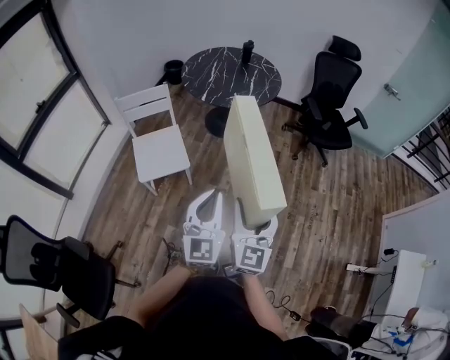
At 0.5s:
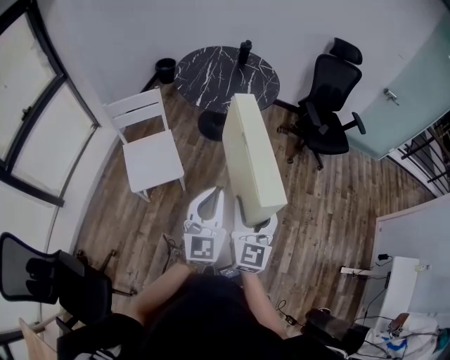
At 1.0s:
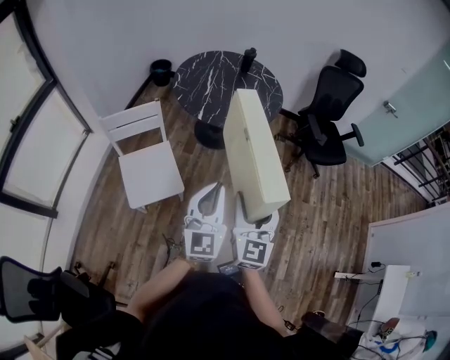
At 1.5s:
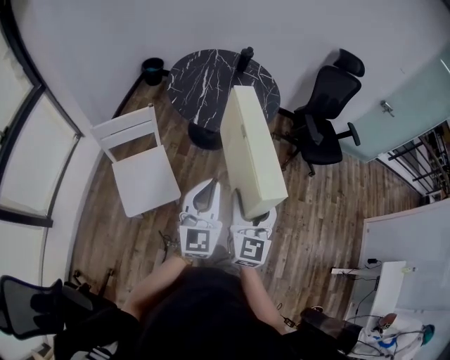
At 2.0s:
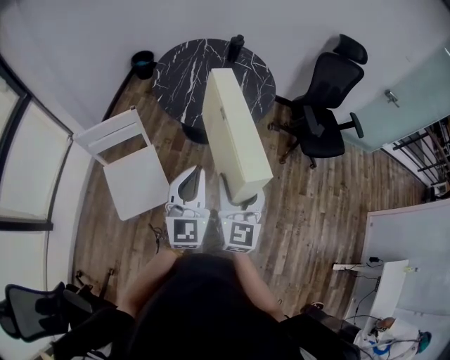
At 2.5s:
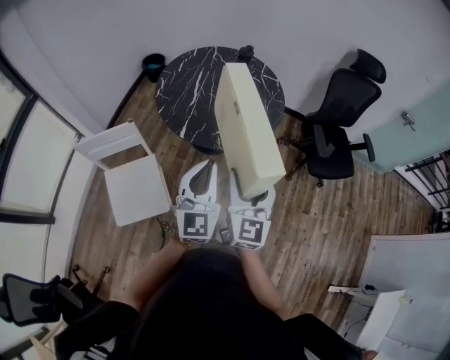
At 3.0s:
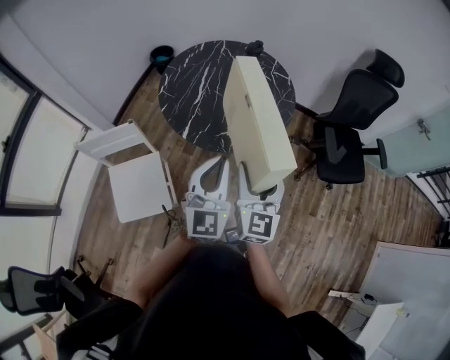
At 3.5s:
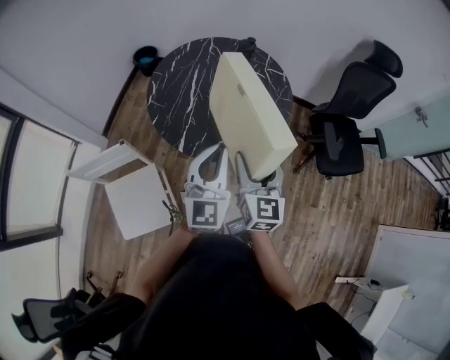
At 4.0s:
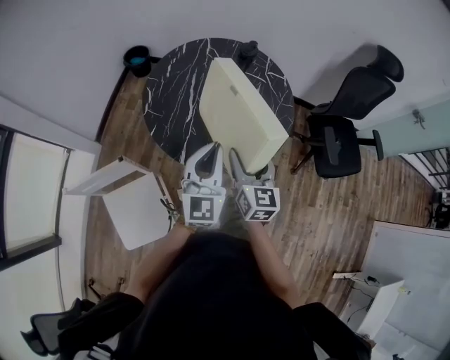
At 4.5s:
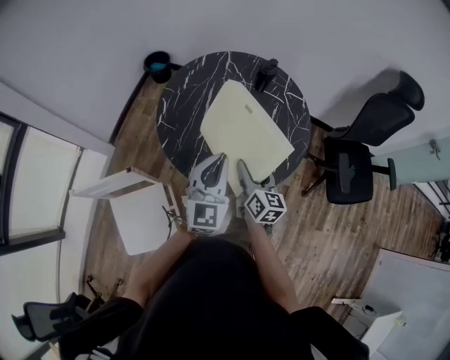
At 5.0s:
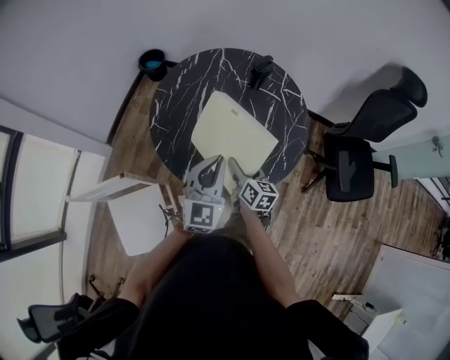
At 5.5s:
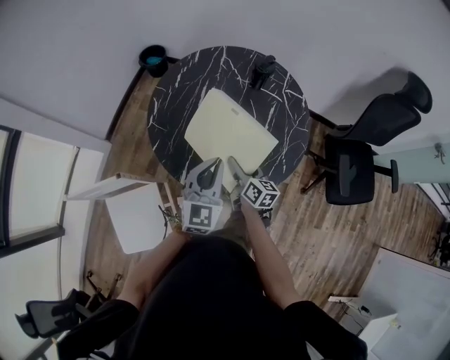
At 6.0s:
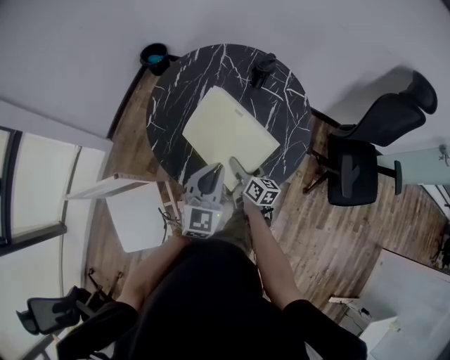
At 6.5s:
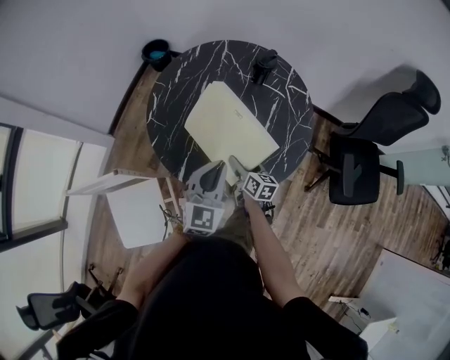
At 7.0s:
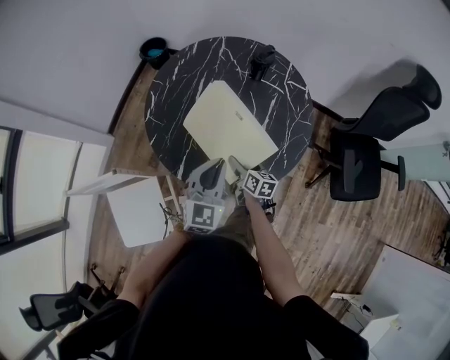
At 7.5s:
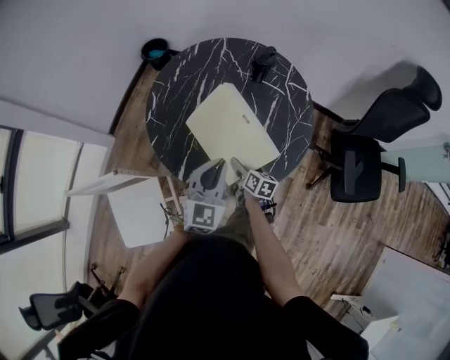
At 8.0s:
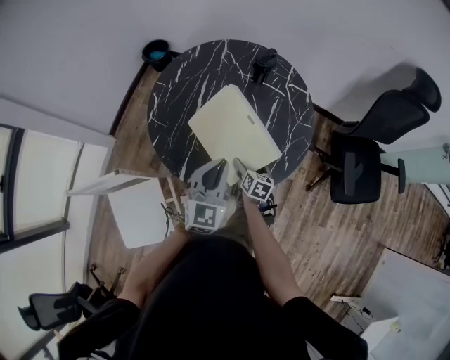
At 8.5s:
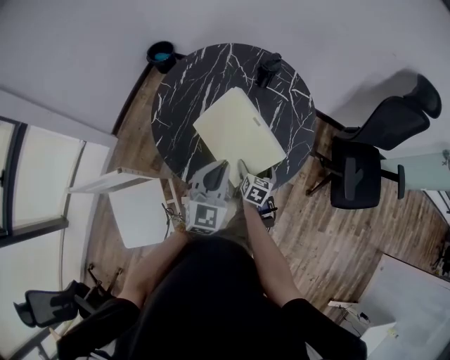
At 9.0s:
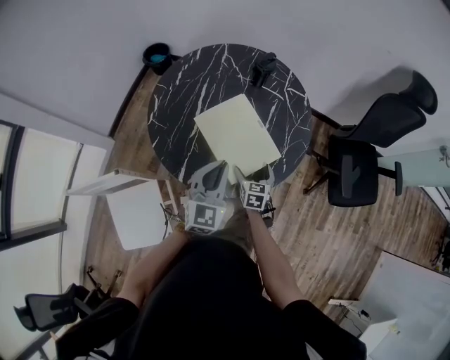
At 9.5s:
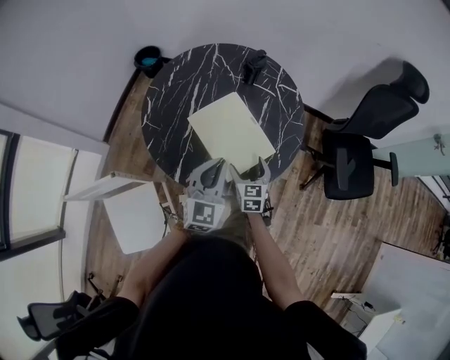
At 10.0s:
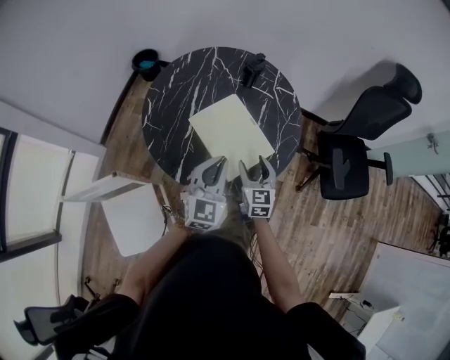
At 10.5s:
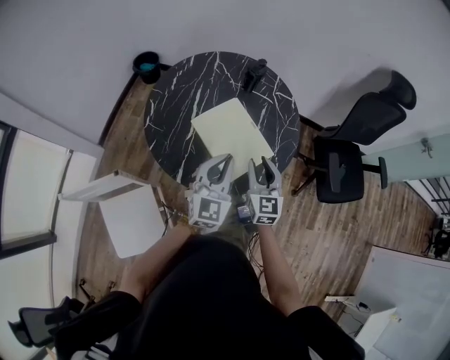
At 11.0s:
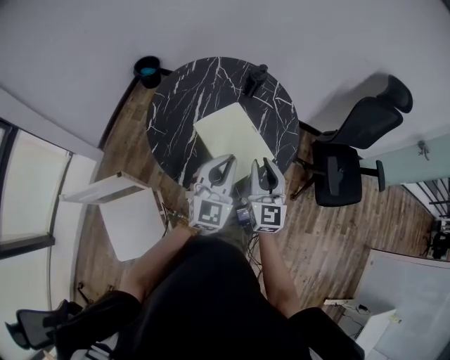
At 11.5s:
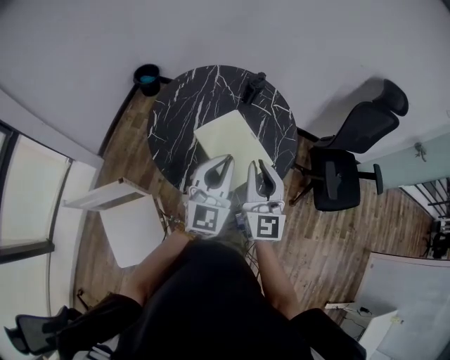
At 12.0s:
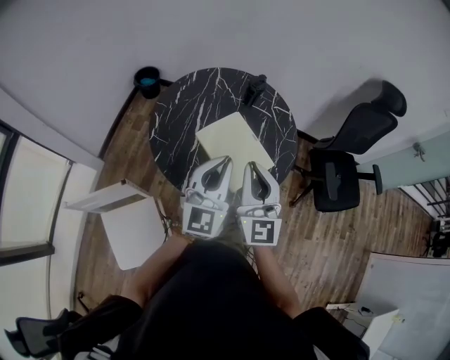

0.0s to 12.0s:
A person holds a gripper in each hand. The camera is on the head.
0.0s to 2.0s: The two grippers travel together, forward, some 40 cm.
2.0s to 4.0s: The two grippers go about 40 cm forward. The right gripper changes its angle by roughly 20 degrees.
4.0s to 6.0s: The right gripper moves downward and forward, some 25 cm, and swivels some 40 degrees; the left gripper shifts roughly 15 cm downward and forward.
6.0s to 8.0s: The right gripper heads downward, covering some 5 cm, and swivels about 30 degrees.
8.0s to 10.0s: The right gripper moves upward, about 15 cm, turns by approximately 40 degrees, and closes.
10.0s to 12.0s: The left gripper shifts some 15 cm upward. The right gripper goes about 25 cm upward, swivels some 30 degrees, and closes.

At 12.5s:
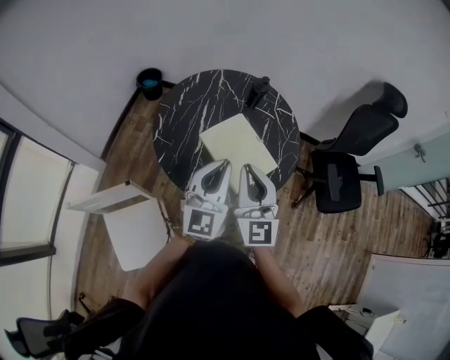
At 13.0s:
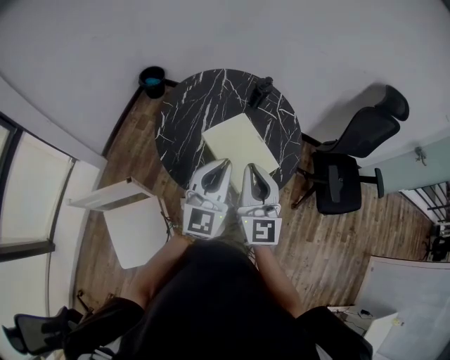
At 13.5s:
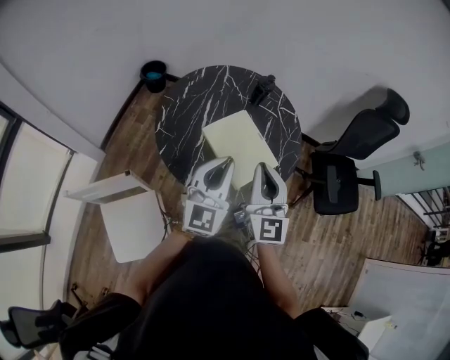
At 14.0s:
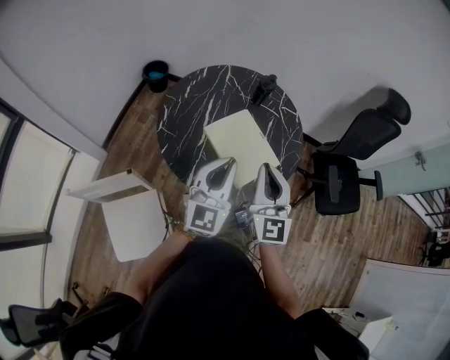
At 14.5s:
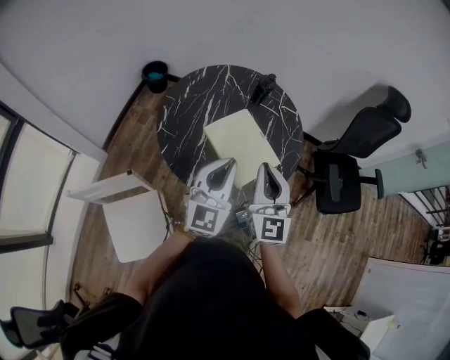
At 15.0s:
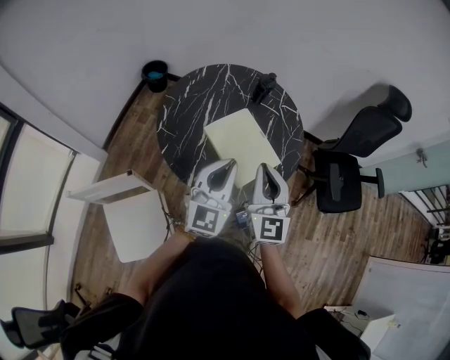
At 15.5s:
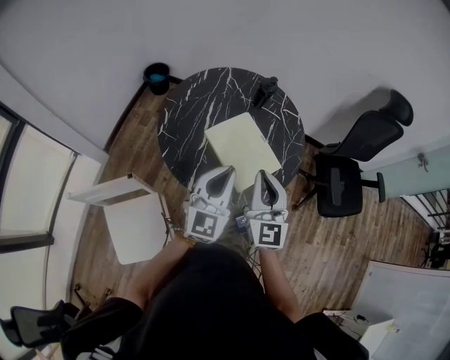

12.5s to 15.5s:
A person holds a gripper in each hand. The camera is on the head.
12.5s to 15.5s: The grippers stay close to where they were, moving slightly.

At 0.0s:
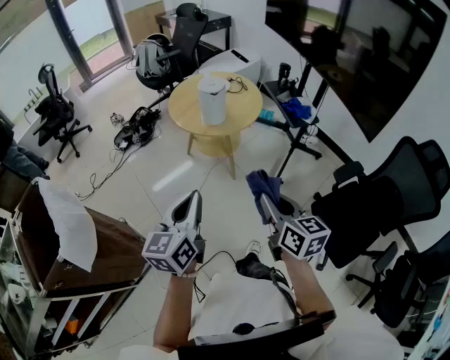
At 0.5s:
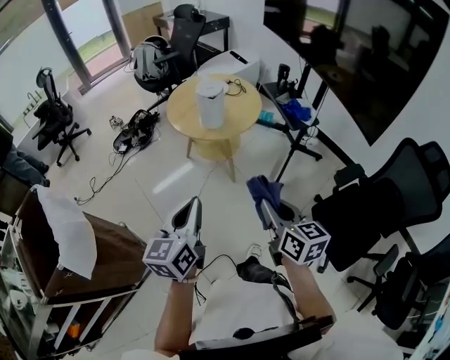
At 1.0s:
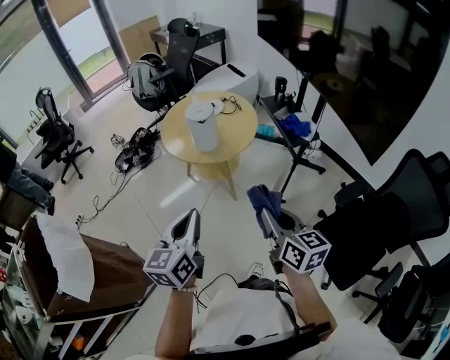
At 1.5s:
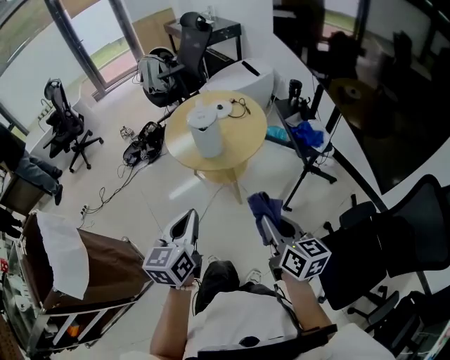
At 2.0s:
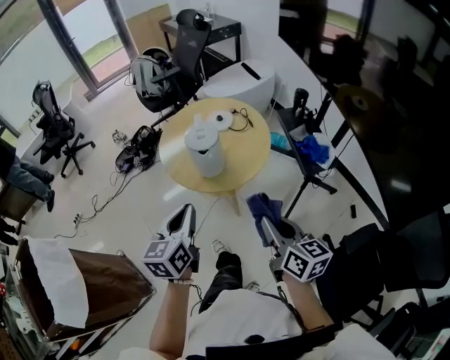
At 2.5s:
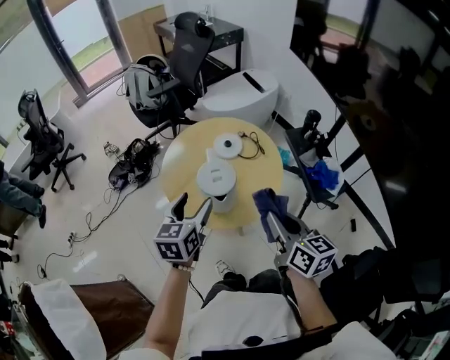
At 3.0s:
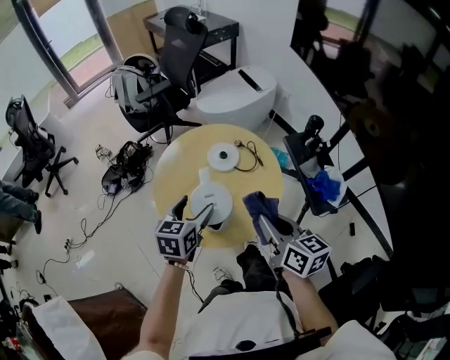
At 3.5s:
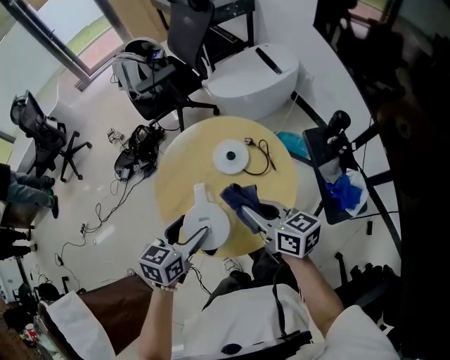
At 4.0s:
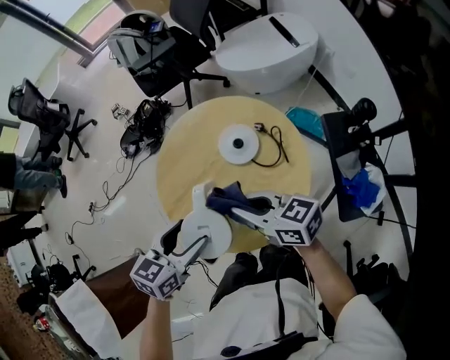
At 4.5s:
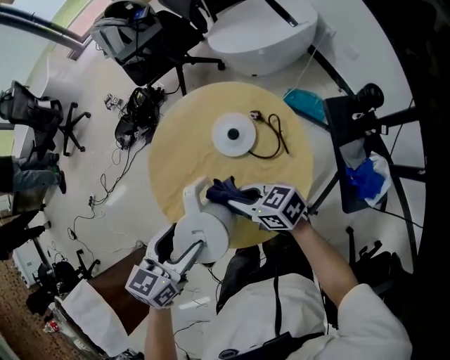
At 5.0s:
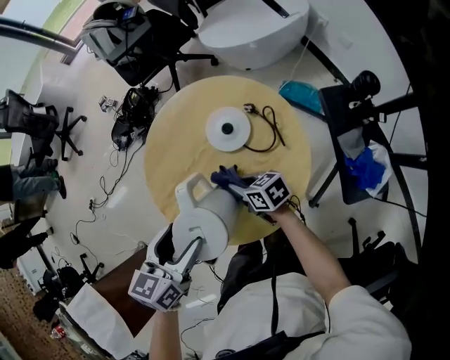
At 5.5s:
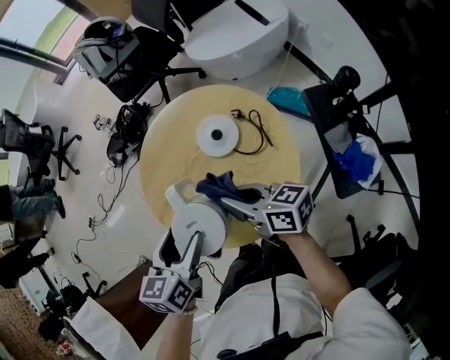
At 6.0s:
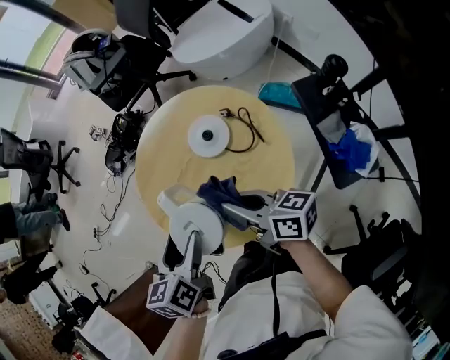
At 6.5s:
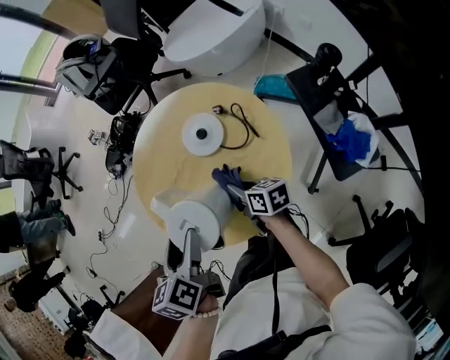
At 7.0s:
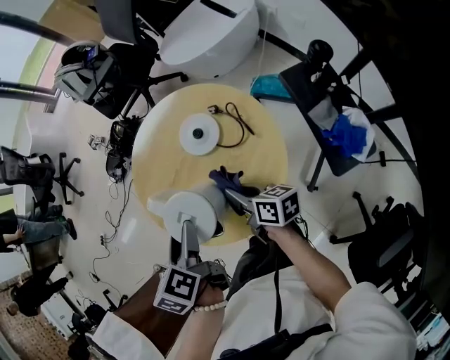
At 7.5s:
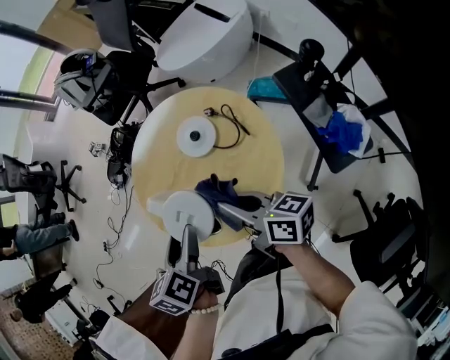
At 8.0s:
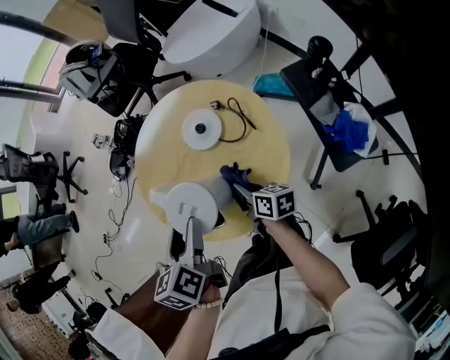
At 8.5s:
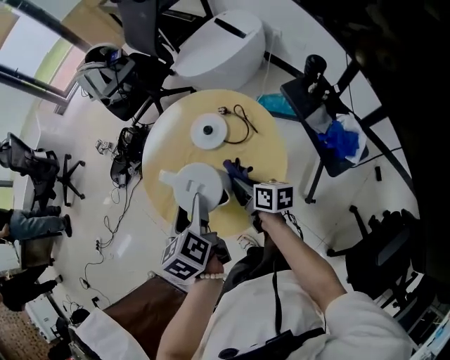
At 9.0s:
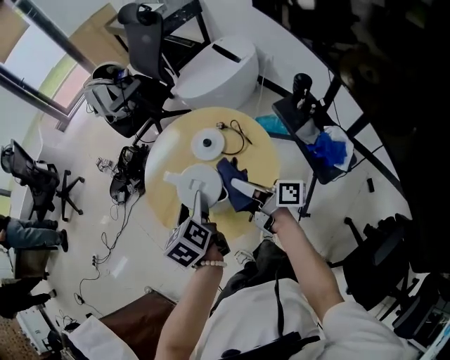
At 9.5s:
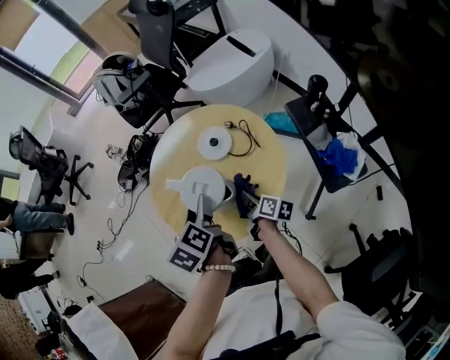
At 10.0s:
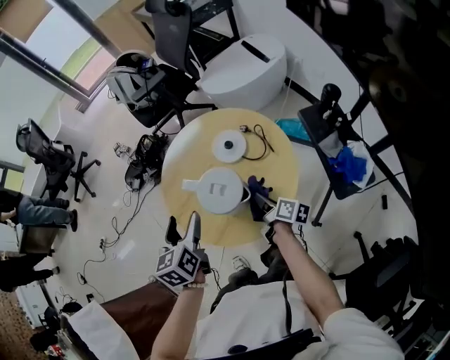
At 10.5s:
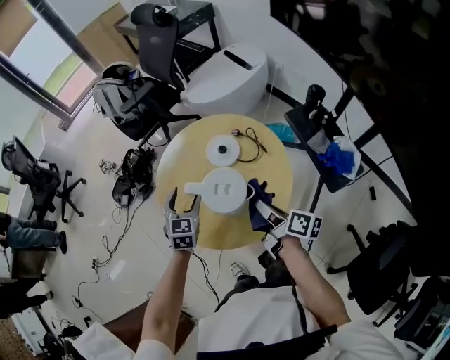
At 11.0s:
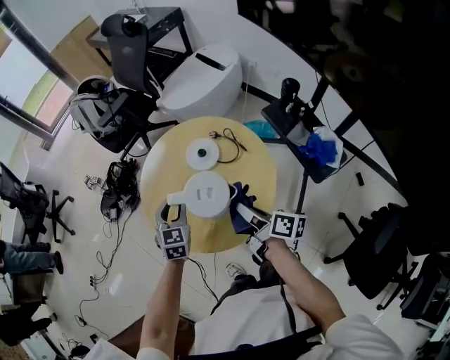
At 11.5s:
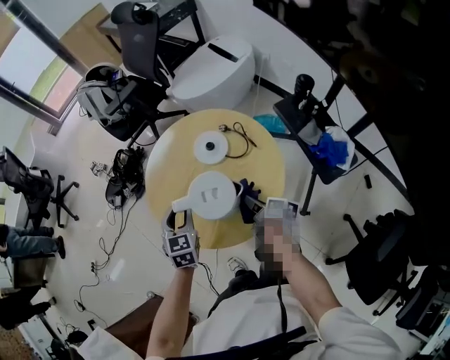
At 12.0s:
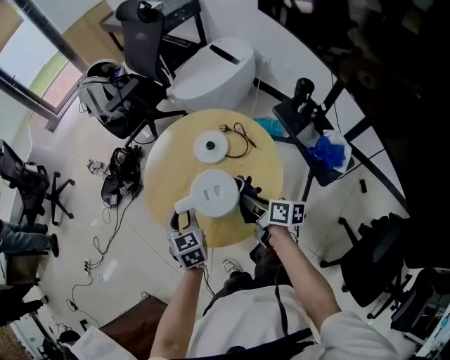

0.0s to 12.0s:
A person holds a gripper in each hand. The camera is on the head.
0.0s to 2.0s: Both grippers move forward, some 25 cm.
2.0s to 4.0s: The two grippers go roughly 30 cm forward. The right gripper changes its angle by some 50 degrees, while the left gripper rotates some 30 degrees, and opens.
4.0s to 6.0s: The left gripper rotates roughly 30 degrees; the right gripper goes downward and returns, some 20 cm each way, and turns by approximately 30 degrees.
6.0s to 8.0s: The right gripper moves up and down over roughly 20 cm, changing direction 2 times, and rotates roughly 30 degrees.
8.0s to 10.0s: The left gripper moves to the left, about 5 cm; the right gripper moves about 15 cm upward and comes back.
10.0s to 12.0s: The right gripper goes up and down, some 15 cm each way, reversing 2 times; the left gripper shifts about 10 cm downward, rotates roughly 30 degrees, and closes up.
